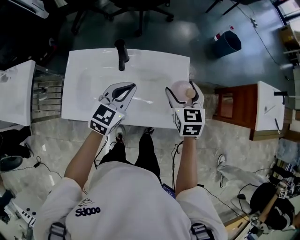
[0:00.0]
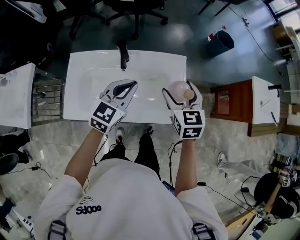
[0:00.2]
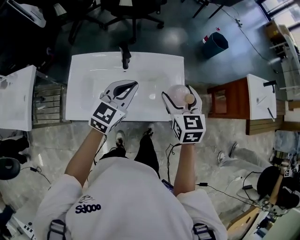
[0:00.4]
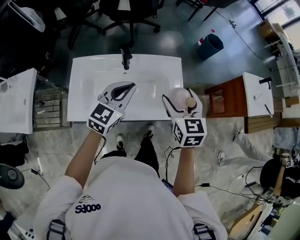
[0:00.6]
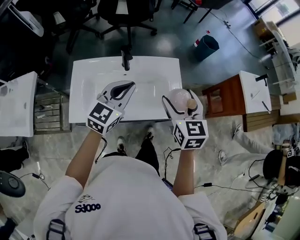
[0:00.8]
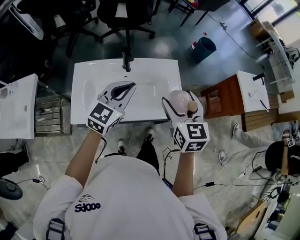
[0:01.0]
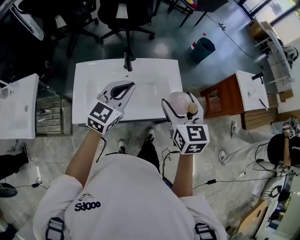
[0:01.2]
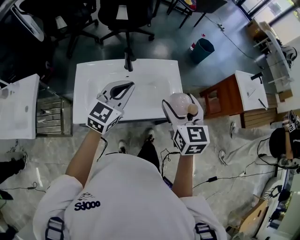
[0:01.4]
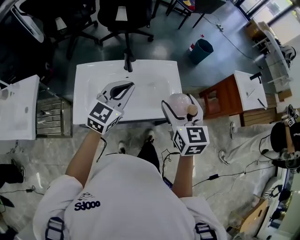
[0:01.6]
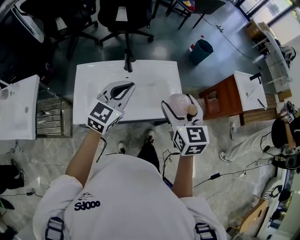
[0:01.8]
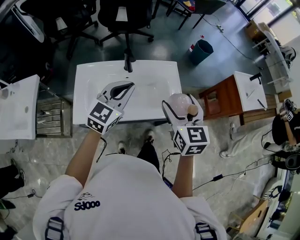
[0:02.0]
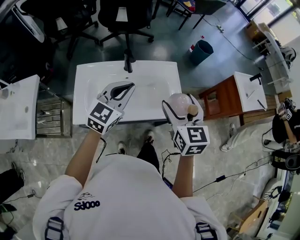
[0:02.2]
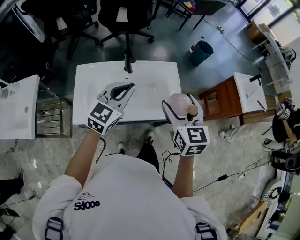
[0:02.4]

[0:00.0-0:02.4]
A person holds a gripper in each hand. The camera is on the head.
0:00.0 to 0:01.2: The left gripper shifts some 15 cm upward and backward, while the right gripper heads backward and upward, covering about 20 cm.
0:01.2 to 0:02.4: There are only small adjustments of the grippers.

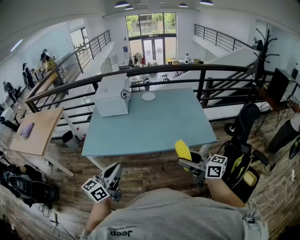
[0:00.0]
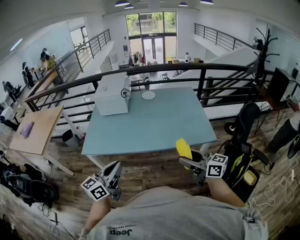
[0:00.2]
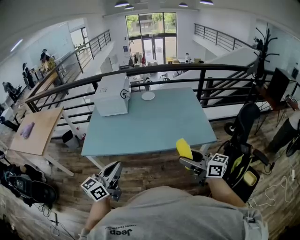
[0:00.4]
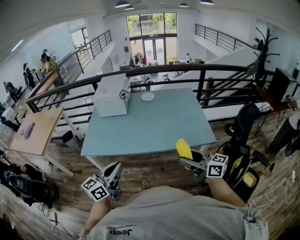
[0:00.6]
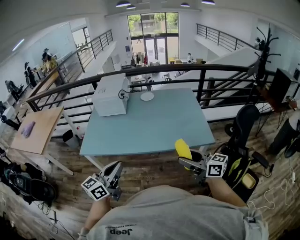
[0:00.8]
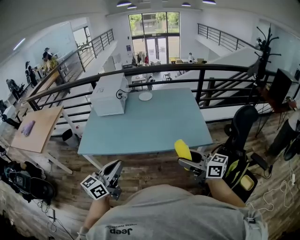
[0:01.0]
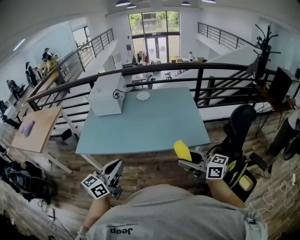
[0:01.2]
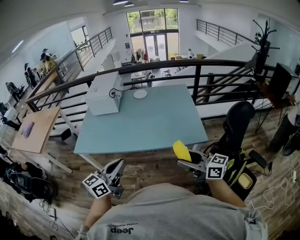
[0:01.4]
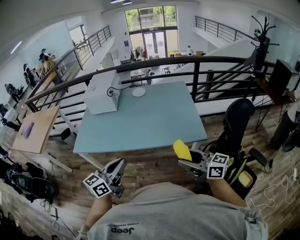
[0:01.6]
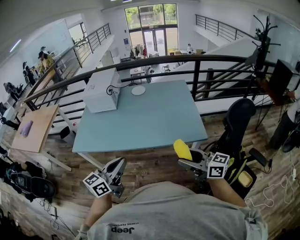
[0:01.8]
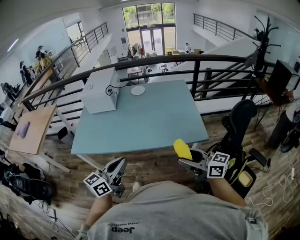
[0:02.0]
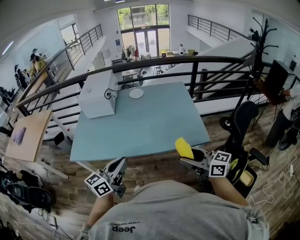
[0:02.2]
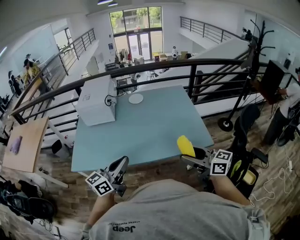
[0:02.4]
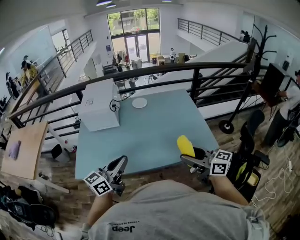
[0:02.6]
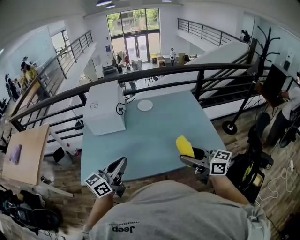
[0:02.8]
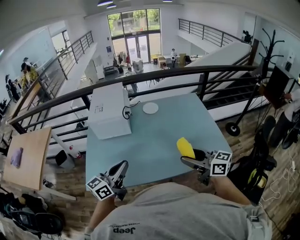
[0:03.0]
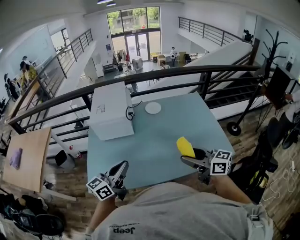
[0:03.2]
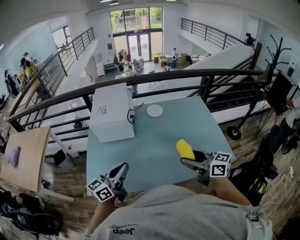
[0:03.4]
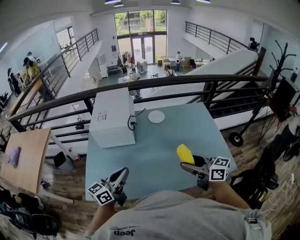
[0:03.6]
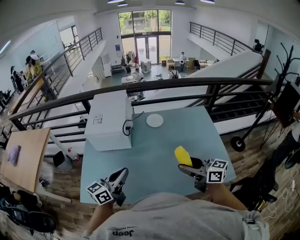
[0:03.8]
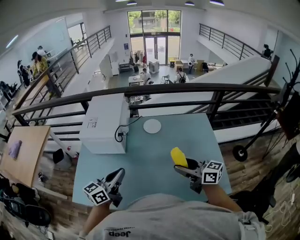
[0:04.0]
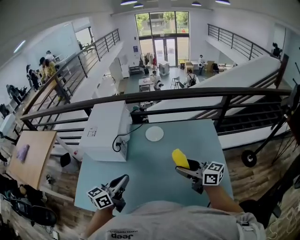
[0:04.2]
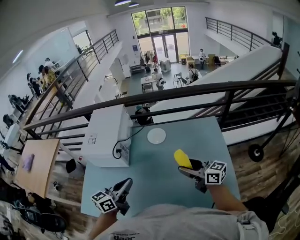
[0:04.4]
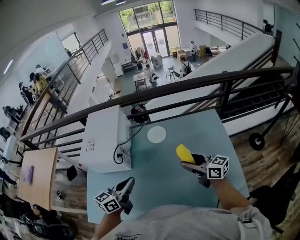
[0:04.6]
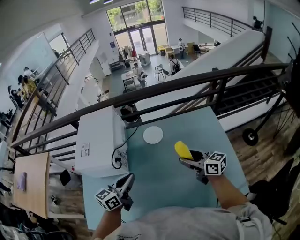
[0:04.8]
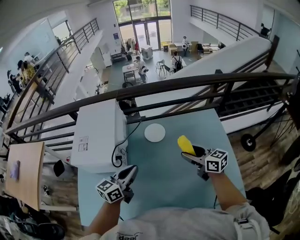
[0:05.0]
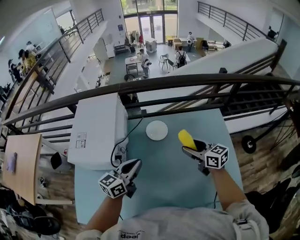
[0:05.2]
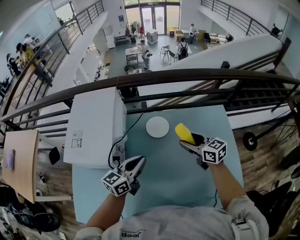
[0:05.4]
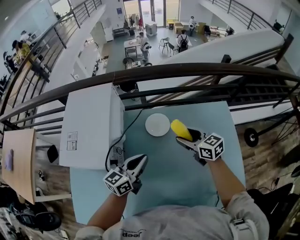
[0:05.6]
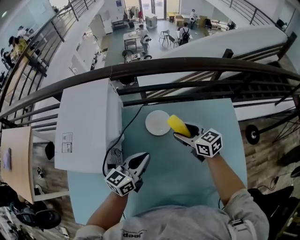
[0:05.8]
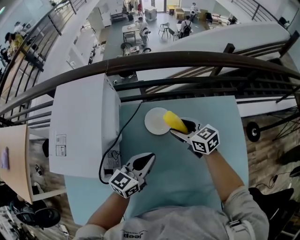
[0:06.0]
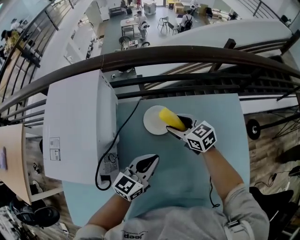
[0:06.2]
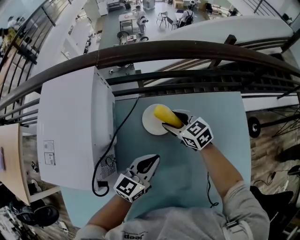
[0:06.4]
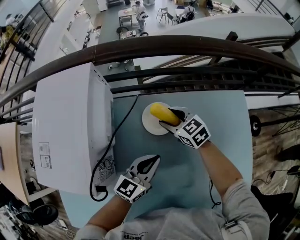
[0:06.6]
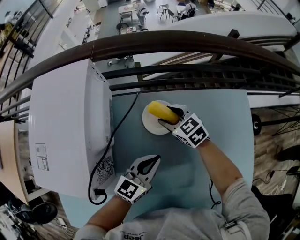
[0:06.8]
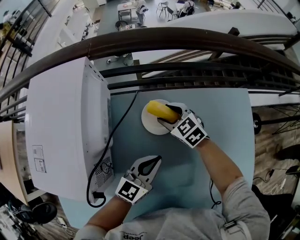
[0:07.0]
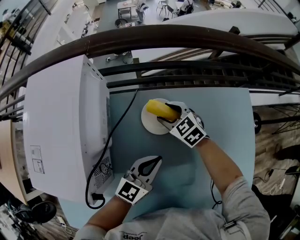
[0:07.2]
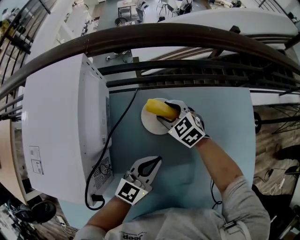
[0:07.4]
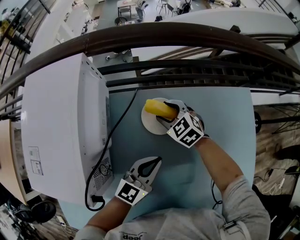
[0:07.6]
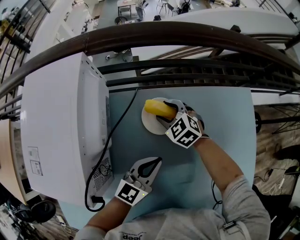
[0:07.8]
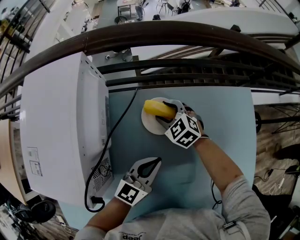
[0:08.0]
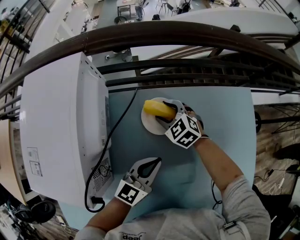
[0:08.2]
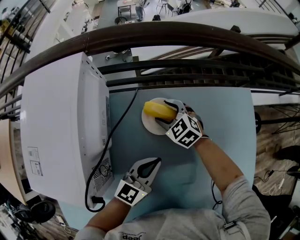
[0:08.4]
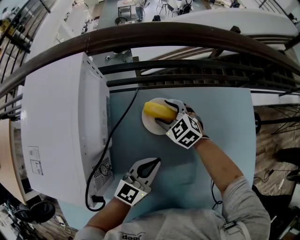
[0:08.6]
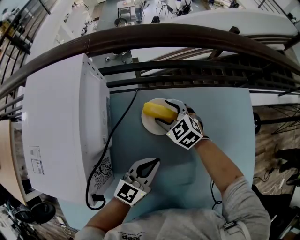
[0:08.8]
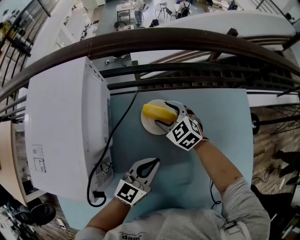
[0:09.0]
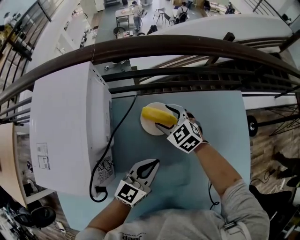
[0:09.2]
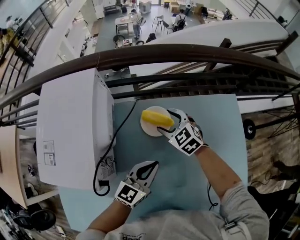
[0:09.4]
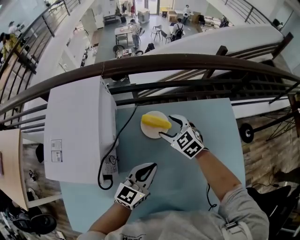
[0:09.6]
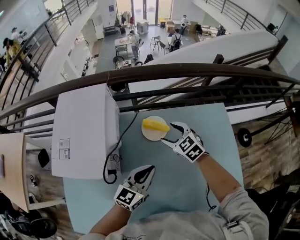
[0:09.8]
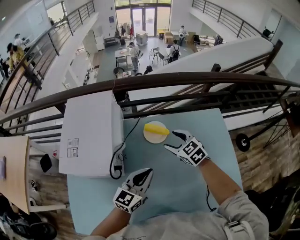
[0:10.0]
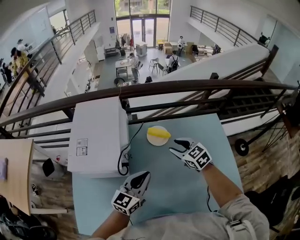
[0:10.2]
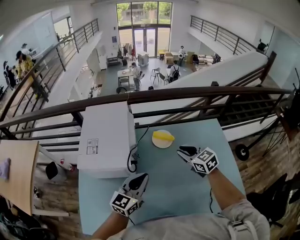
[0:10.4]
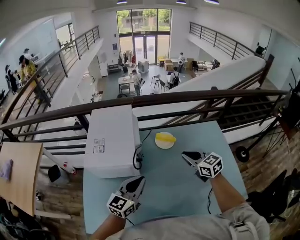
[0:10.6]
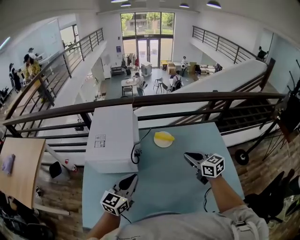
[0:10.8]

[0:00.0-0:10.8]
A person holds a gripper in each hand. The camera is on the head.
0:00.0 to 0:01.6: Both grippers move to the right, approximately 15 cm.
0:01.6 to 0:03.0: The grippers both shift forward and to the left by about 35 cm.
0:03.0 to 0:04.6: The right gripper goes roughly 35 cm forward. The left gripper heads forward and to the right, covering approximately 30 cm.
0:04.6 to 0:06.2: The grippers both shift forward and downward by roughly 30 cm. The right gripper changes its angle by roughly 30 degrees.
0:06.2 to 0:07.8: The right gripper shifts some 10 cm downward, forward and to the left, and turns by some 30 degrees; the left gripper is displaced downward by about 5 cm.
0:07.8 to 0:09.2: The right gripper goes some 5 cm upward.
0:09.2 to 0:10.8: The left gripper travels upward, backward and to the left by approximately 35 cm. The right gripper goes roughly 35 cm backward and upward, swivels approximately 40 degrees, and closes.

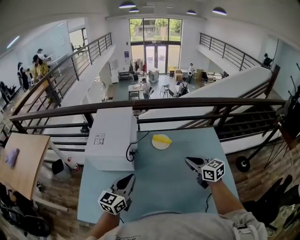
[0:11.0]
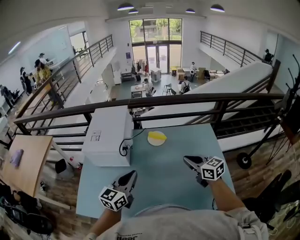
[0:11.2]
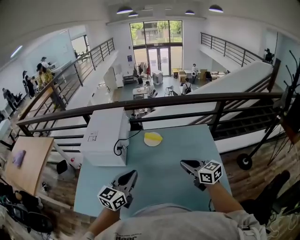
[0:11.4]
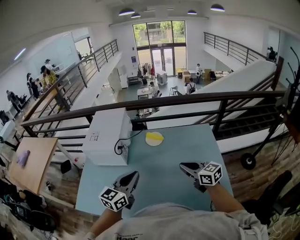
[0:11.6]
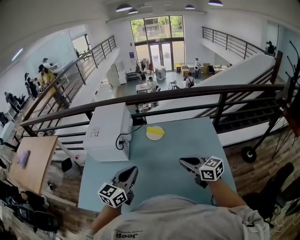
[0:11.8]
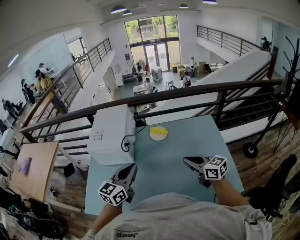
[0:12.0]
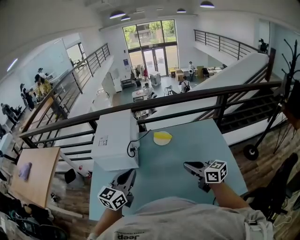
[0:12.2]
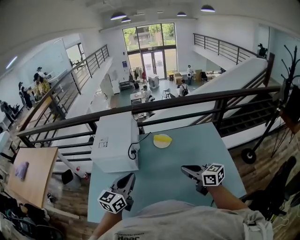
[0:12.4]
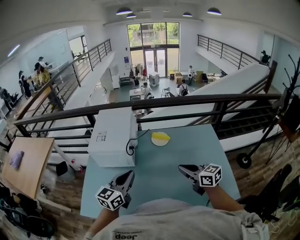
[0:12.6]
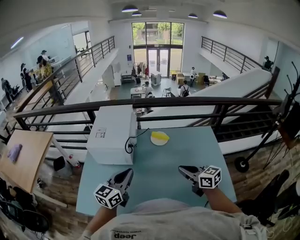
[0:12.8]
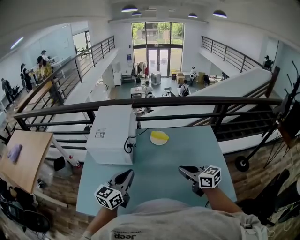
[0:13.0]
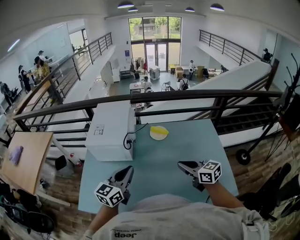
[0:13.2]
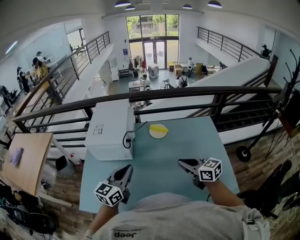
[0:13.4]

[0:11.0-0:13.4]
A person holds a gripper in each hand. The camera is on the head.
0:11.0 to 0:12.2: The left gripper reaches some 10 cm to the right, then returns, while the right gripper goes approximately 10 cm backward.
0:12.2 to 0:13.4: The grippers make only small movements.

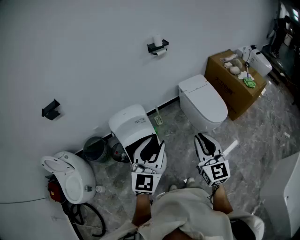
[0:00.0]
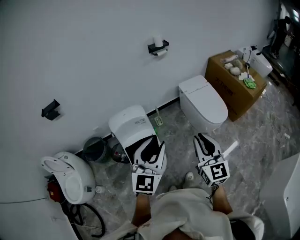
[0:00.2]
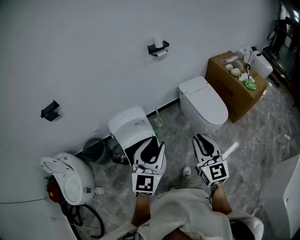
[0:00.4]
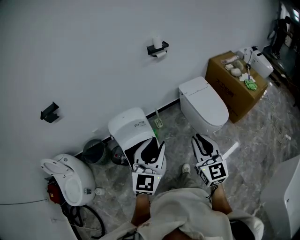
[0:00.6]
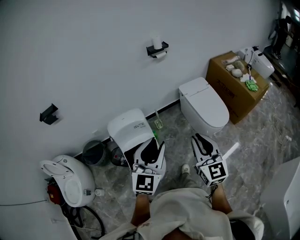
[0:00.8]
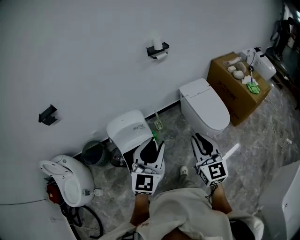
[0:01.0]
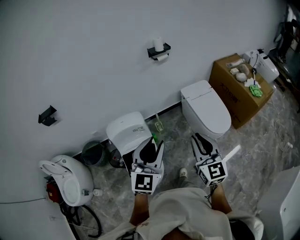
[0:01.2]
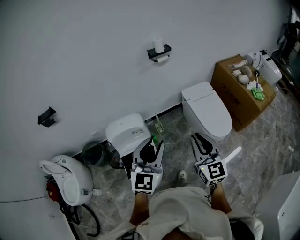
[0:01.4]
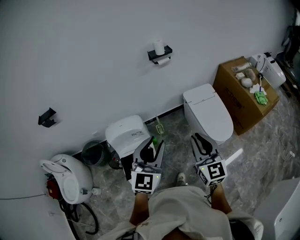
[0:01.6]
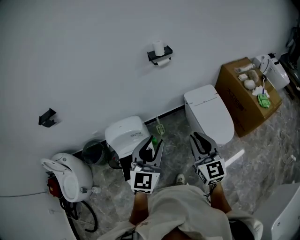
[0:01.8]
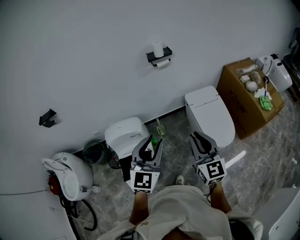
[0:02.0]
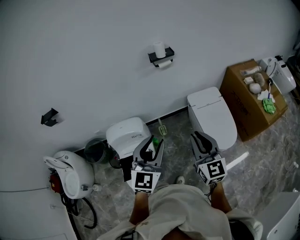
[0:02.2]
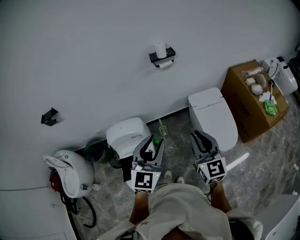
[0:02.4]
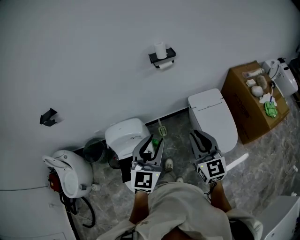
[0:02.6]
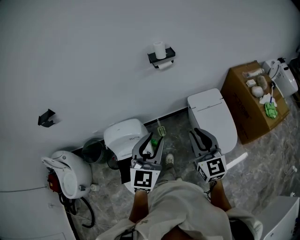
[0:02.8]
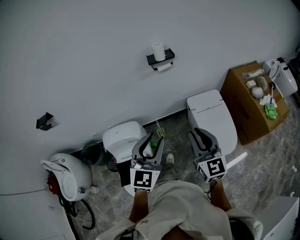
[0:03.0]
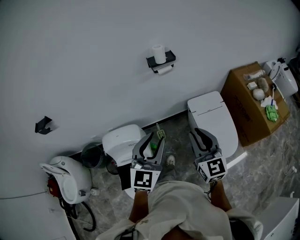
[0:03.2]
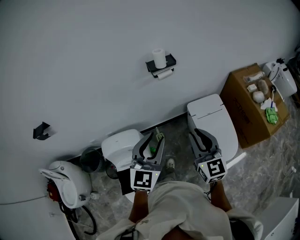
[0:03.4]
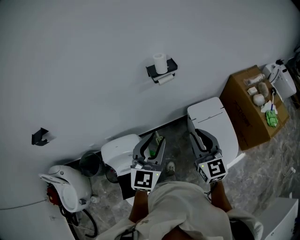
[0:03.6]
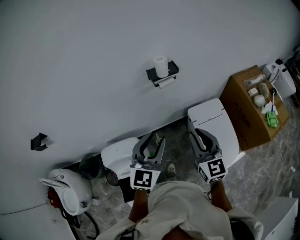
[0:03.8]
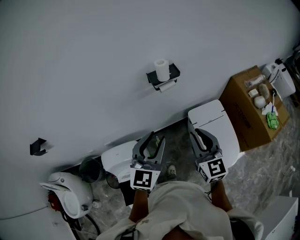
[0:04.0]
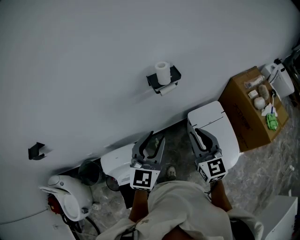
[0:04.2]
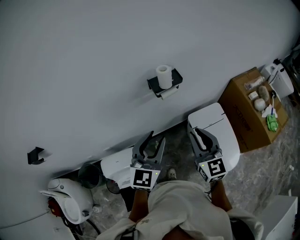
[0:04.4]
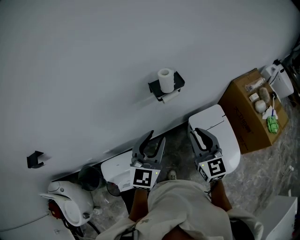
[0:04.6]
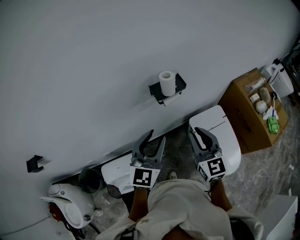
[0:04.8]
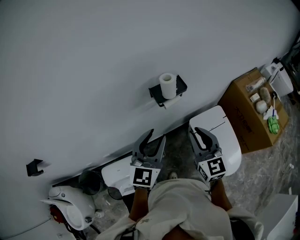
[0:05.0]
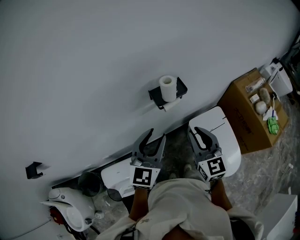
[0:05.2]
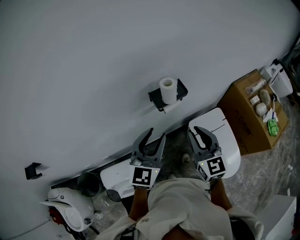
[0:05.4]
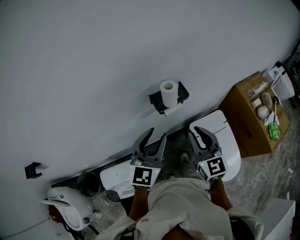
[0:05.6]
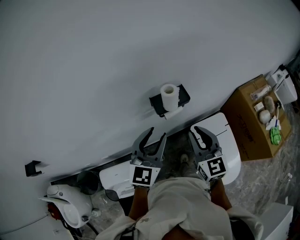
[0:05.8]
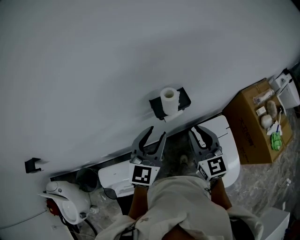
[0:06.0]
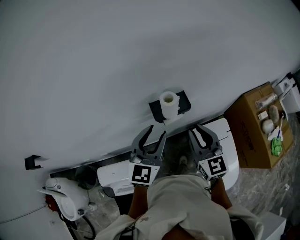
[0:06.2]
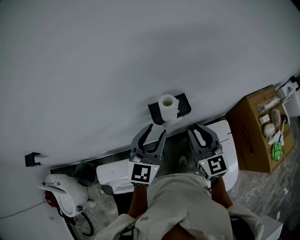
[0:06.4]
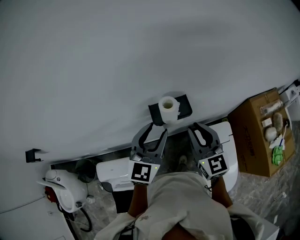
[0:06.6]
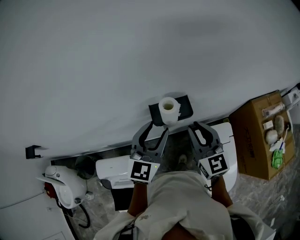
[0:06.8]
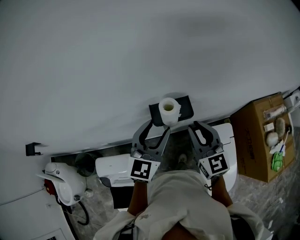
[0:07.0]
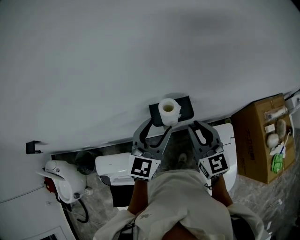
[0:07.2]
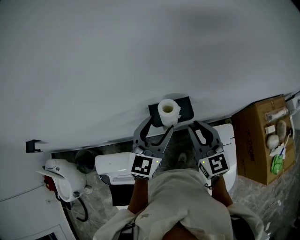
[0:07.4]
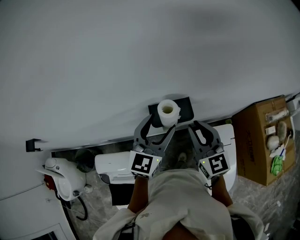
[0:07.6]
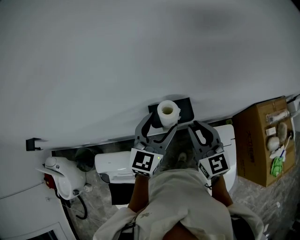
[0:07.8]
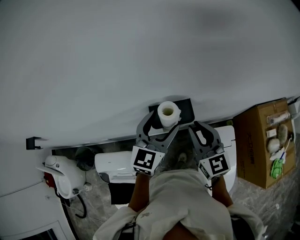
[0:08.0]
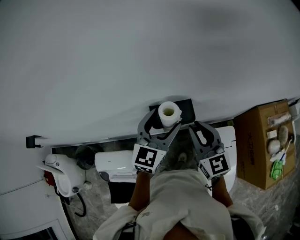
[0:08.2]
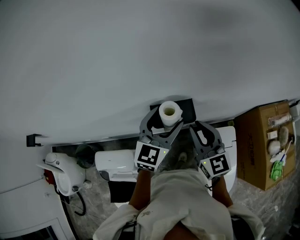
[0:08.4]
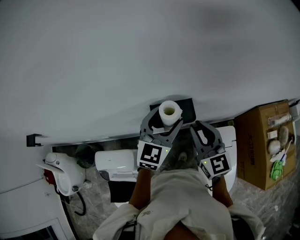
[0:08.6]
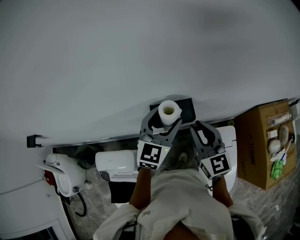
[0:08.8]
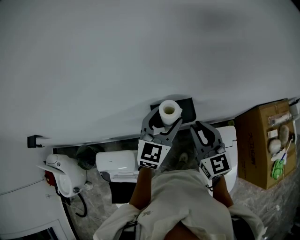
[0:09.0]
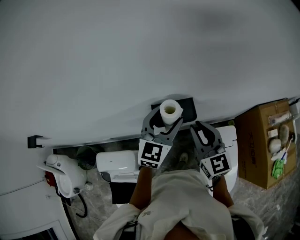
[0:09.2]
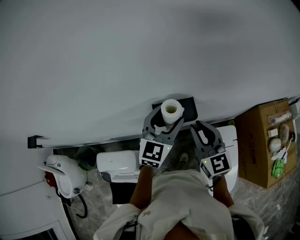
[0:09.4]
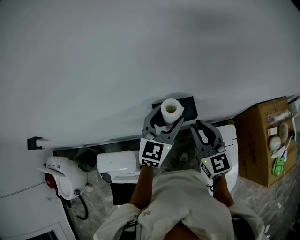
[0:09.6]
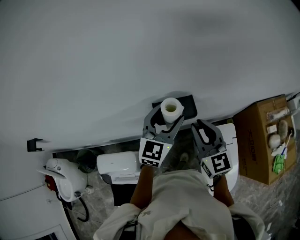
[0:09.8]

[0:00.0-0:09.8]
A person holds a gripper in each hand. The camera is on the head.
0:00.0 to 0:01.4: Both grippers travel together forward, about 15 cm.
0:01.4 to 0:02.8: Both grippers travel together forward and to the right, roughly 15 cm.
0:02.8 to 0:04.2: The two grippers go approximately 20 cm forward.
0:04.2 to 0:05.6: Both grippers travel together forward, some 15 cm.
0:05.6 to 0:07.0: The grippers both shift forward by approximately 10 cm.
0:07.0 to 0:08.4: The left gripper shifts by about 5 cm, and opens its fingers.
0:08.4 to 0:09.8: There are only small adjustments of the grippers.
